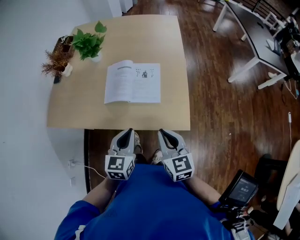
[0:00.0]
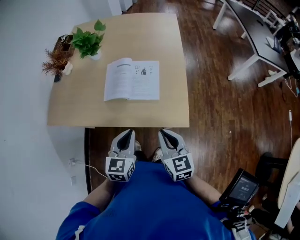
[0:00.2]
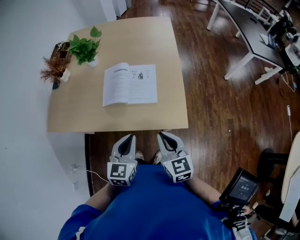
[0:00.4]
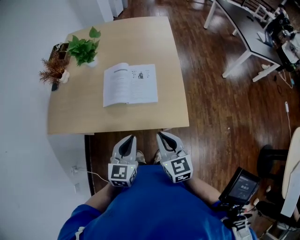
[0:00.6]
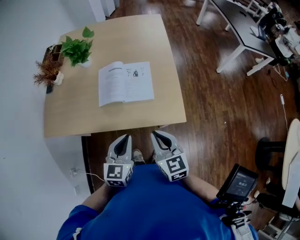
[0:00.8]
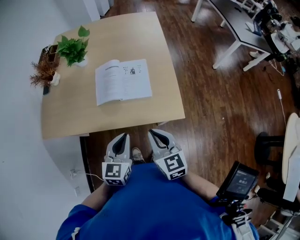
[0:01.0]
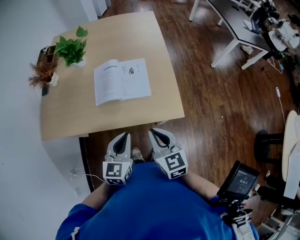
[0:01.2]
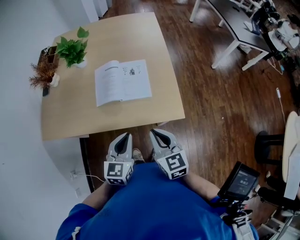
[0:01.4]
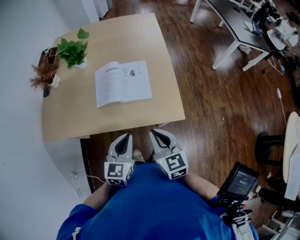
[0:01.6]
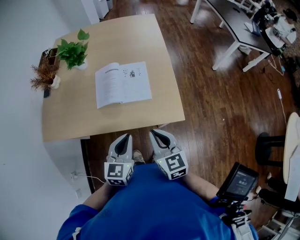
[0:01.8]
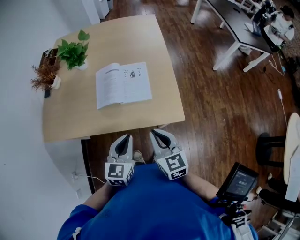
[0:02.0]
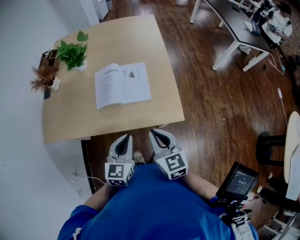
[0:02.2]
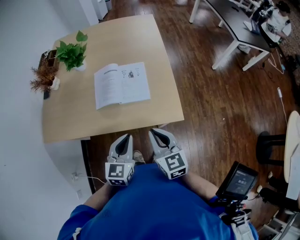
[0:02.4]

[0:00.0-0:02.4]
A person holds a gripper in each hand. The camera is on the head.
0:00.0 to 0:02.4: The grippers make only small movements.

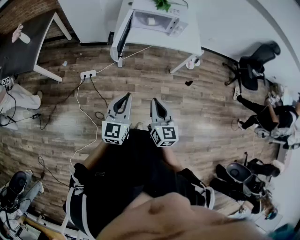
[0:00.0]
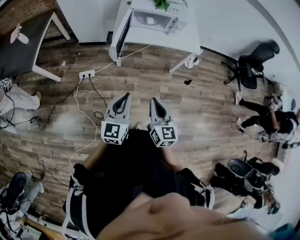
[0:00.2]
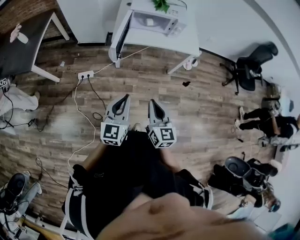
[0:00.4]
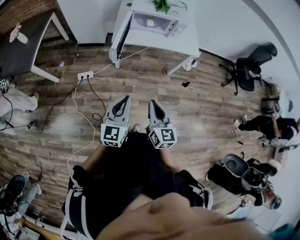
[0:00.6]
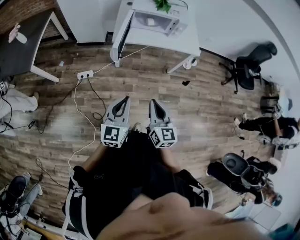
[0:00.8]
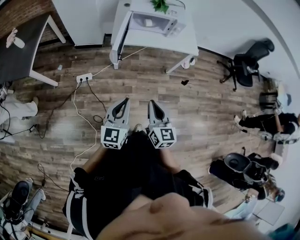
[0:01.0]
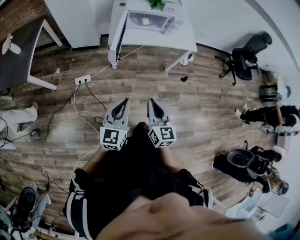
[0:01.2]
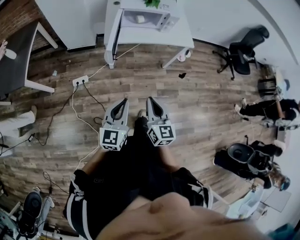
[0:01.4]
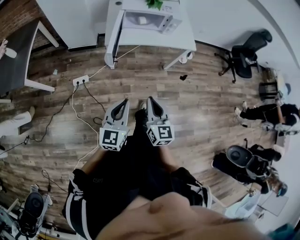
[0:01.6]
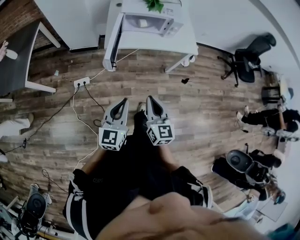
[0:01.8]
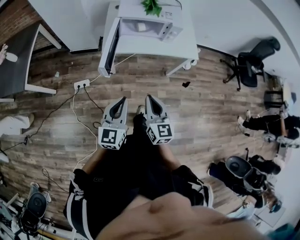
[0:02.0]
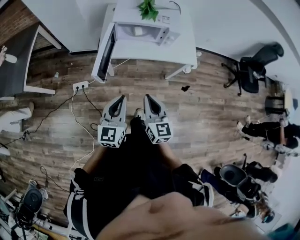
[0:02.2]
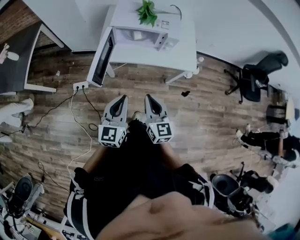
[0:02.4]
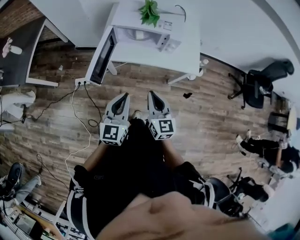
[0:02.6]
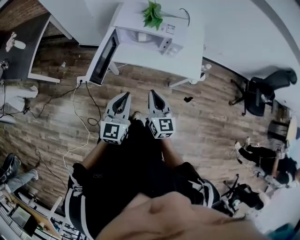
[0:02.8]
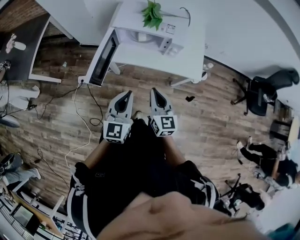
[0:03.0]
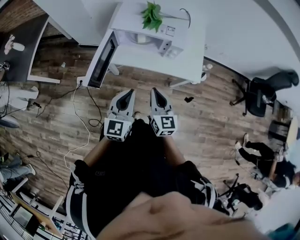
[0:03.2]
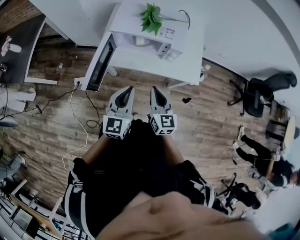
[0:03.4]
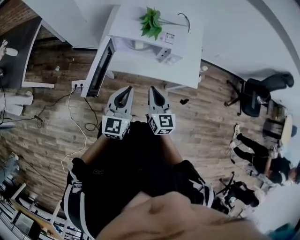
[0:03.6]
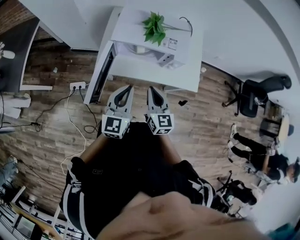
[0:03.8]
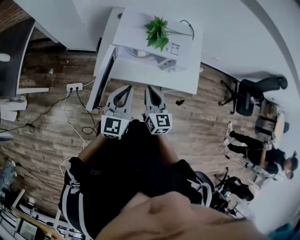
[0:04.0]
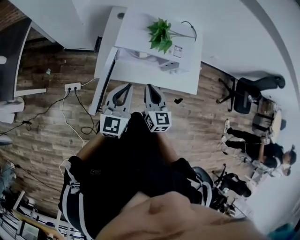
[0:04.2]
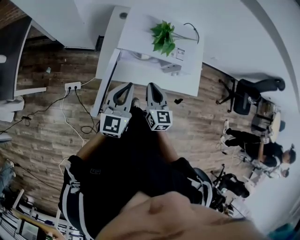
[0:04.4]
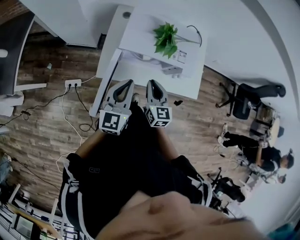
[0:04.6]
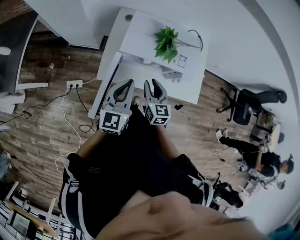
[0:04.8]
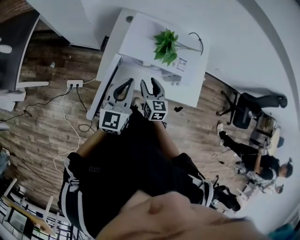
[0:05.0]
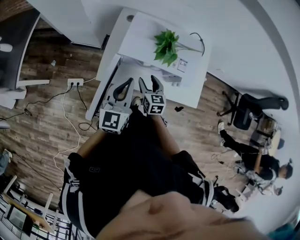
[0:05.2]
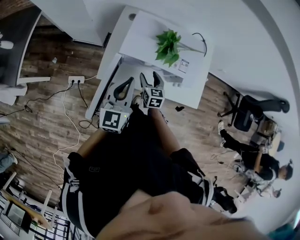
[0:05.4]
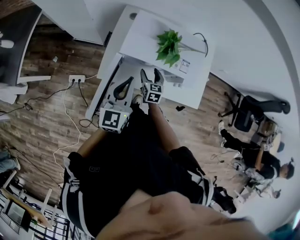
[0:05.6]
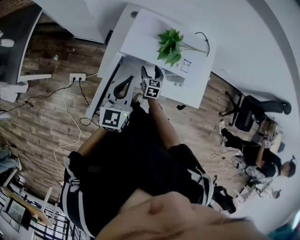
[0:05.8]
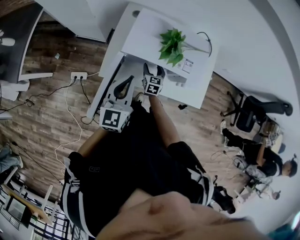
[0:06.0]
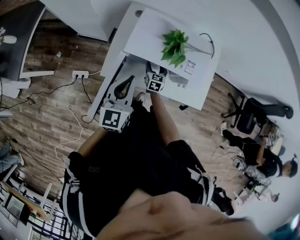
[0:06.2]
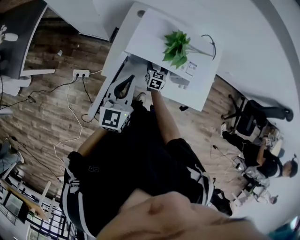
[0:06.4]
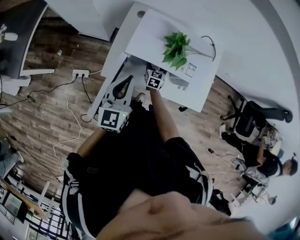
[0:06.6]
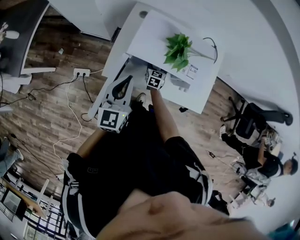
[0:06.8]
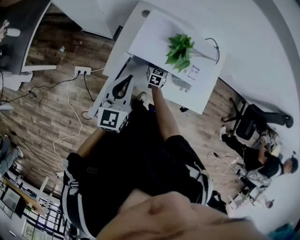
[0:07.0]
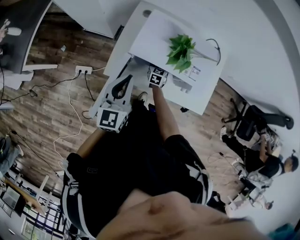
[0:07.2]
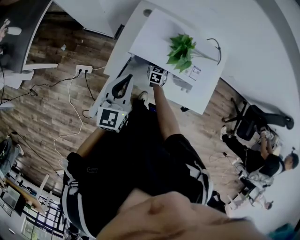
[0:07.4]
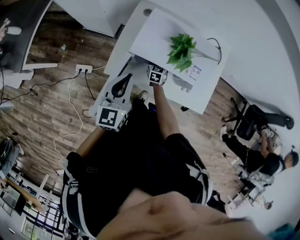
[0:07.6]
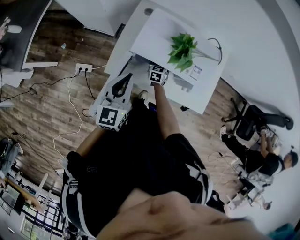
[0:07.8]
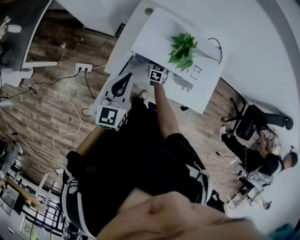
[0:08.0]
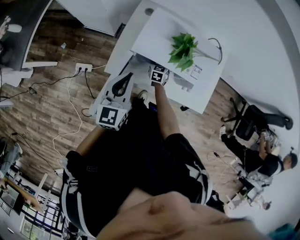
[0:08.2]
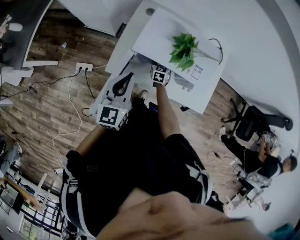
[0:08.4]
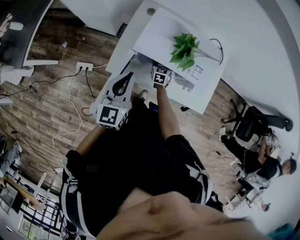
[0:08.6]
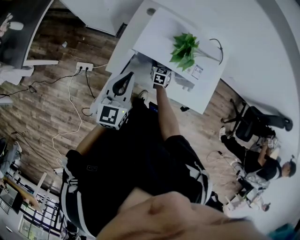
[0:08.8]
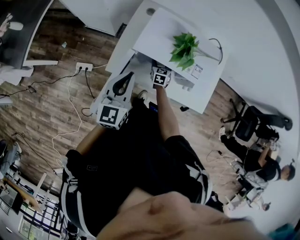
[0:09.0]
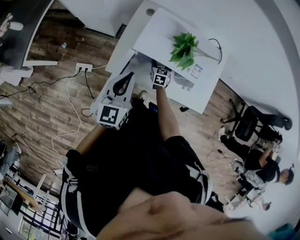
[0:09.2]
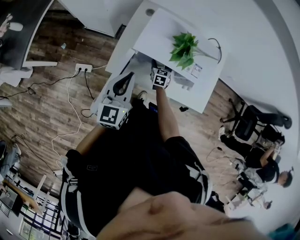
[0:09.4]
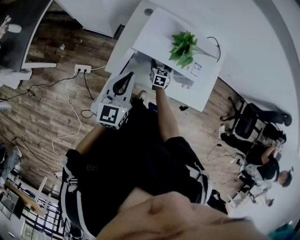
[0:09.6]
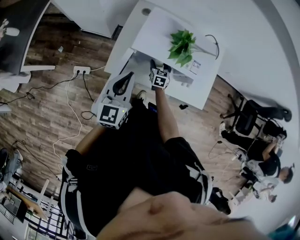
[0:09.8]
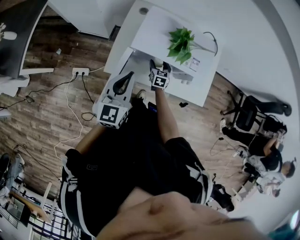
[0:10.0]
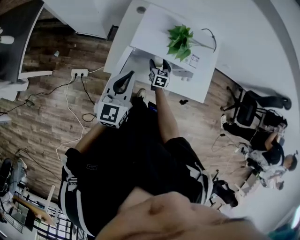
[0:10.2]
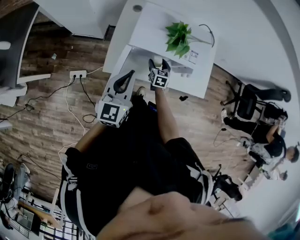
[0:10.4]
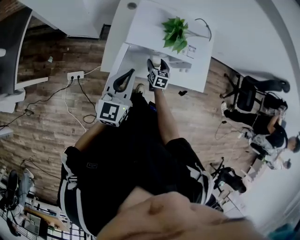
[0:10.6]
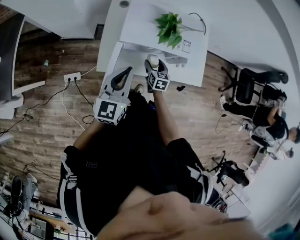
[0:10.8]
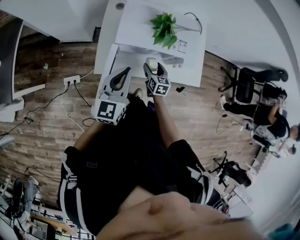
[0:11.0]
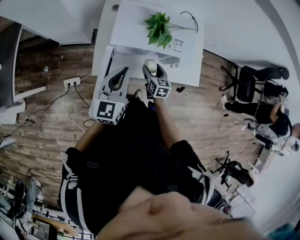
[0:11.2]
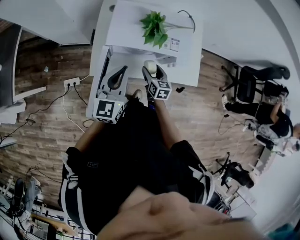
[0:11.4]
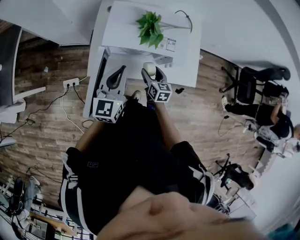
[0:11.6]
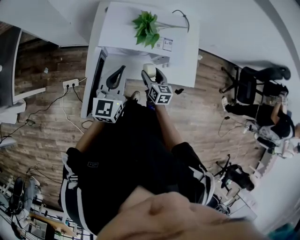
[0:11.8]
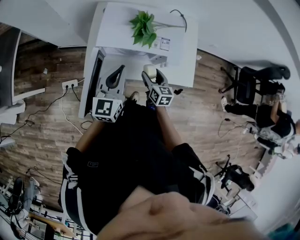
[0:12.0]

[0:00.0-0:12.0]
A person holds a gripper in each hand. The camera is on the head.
0:00.0 to 0:01.6: The right gripper ends up roughly 5 cm from where it was.
0:01.6 to 0:03.0: Both grippers move forward and to the right, about 30 cm.
0:03.0 to 0:04.4: Both grippers move forward and to the left, roughly 20 cm.
0:04.4 to 0:06.0: The right gripper shifts approximately 30 cm downward and forward, and opens its fingers; the left gripper heads forward, covering roughly 5 cm.
0:06.0 to 0:07.6: The right gripper shifts some 10 cm forward and downward.
0:07.6 to 0:09.0: The grippers make only small movements.
0:09.0 to 0:10.4: The right gripper shifts some 5 cm backward.
0:10.4 to 0:12.0: The right gripper shifts some 15 cm upward, to the right and backward, while the left gripper goes approximately 10 cm to the right.

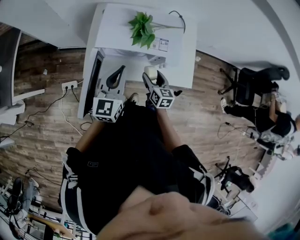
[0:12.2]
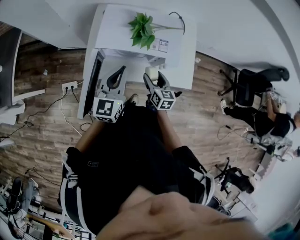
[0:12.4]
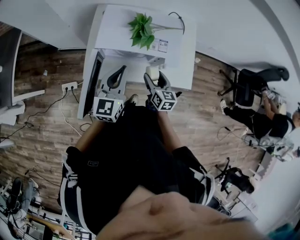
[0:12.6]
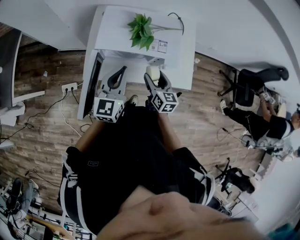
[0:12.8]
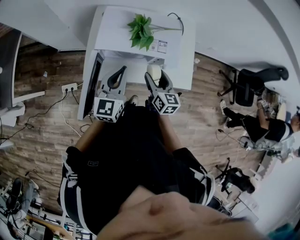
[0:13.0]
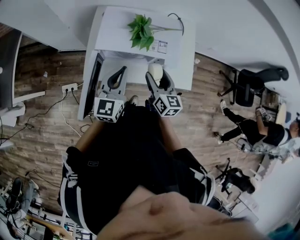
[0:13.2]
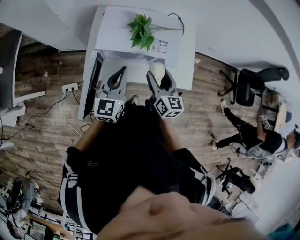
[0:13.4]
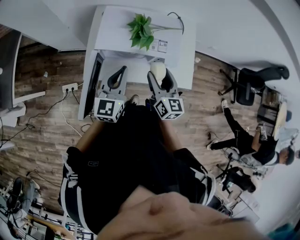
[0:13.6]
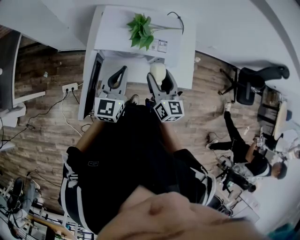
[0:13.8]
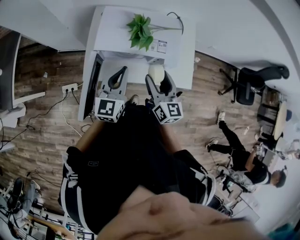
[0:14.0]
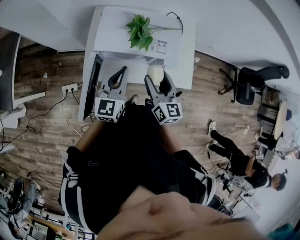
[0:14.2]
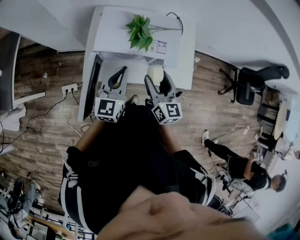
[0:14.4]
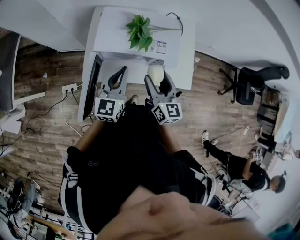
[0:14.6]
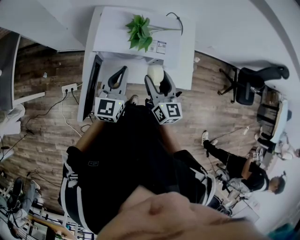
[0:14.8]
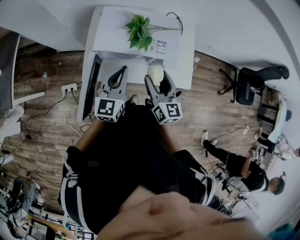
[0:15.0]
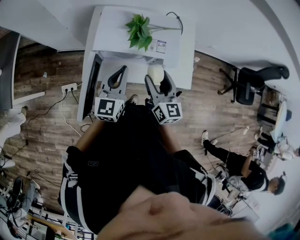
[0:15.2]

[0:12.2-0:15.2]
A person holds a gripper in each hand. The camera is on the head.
0:12.2 to 0:13.8: The right gripper is displaced upward by about 15 cm.
0:13.8 to 0:15.2: Both grippers stay put.

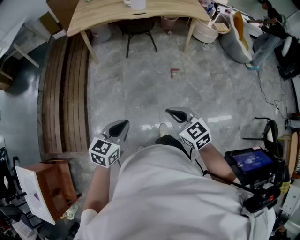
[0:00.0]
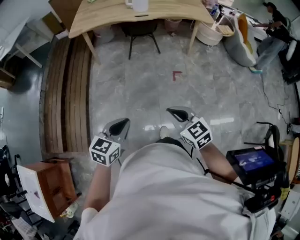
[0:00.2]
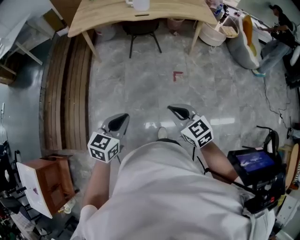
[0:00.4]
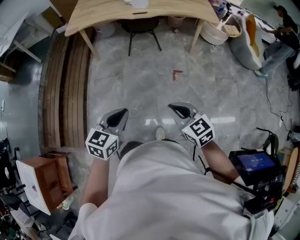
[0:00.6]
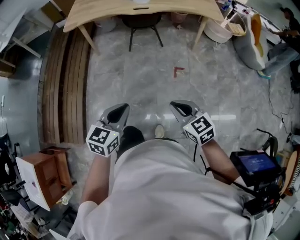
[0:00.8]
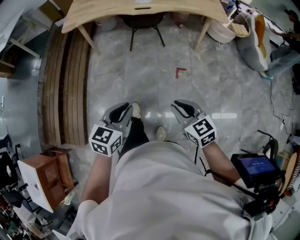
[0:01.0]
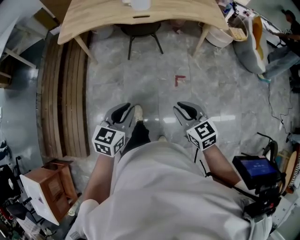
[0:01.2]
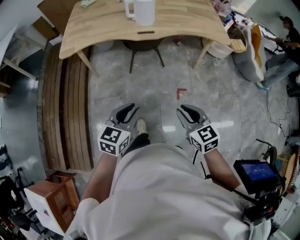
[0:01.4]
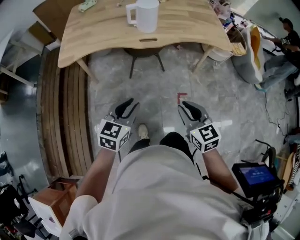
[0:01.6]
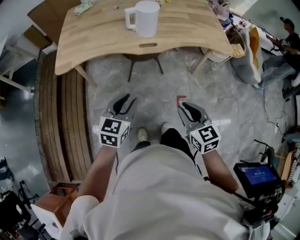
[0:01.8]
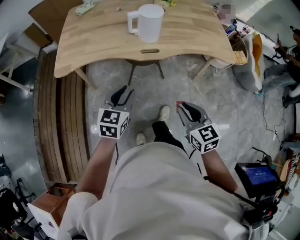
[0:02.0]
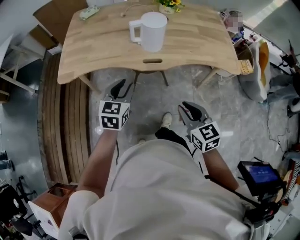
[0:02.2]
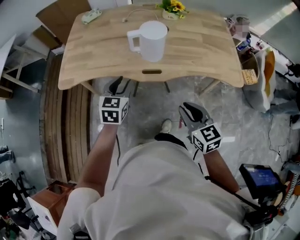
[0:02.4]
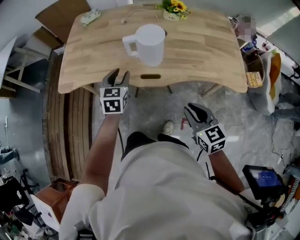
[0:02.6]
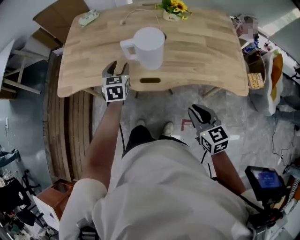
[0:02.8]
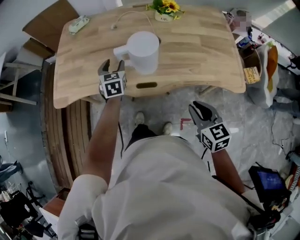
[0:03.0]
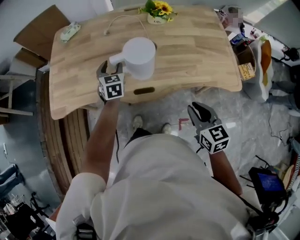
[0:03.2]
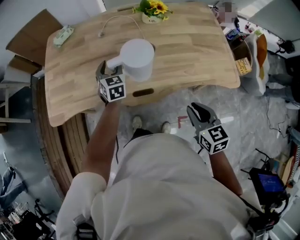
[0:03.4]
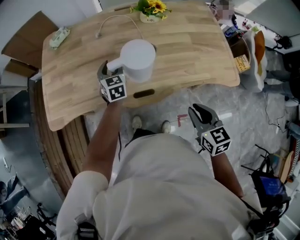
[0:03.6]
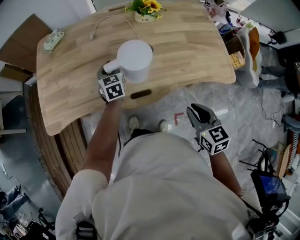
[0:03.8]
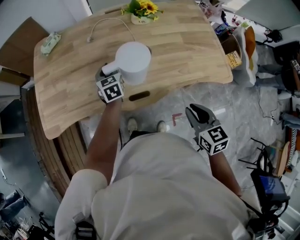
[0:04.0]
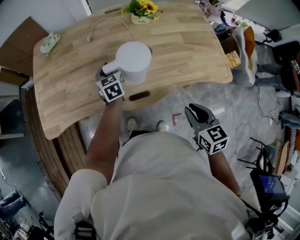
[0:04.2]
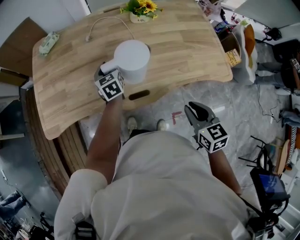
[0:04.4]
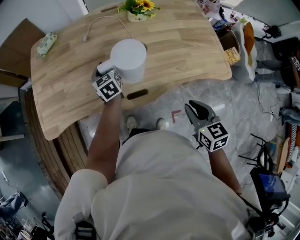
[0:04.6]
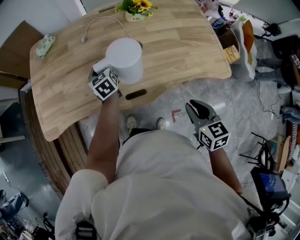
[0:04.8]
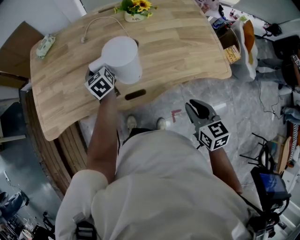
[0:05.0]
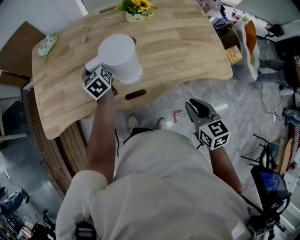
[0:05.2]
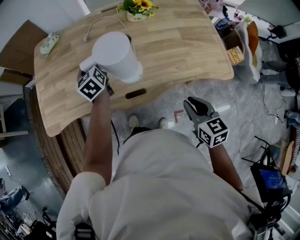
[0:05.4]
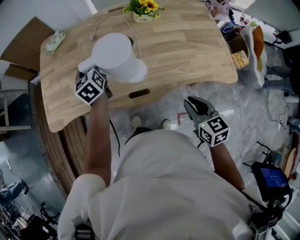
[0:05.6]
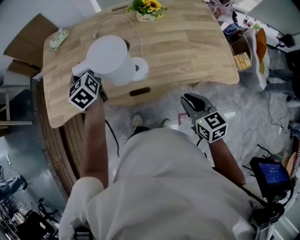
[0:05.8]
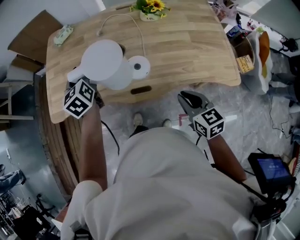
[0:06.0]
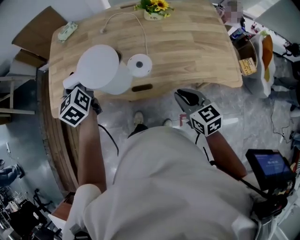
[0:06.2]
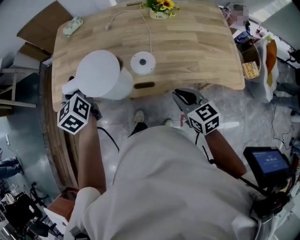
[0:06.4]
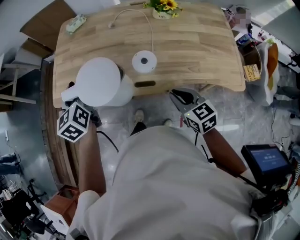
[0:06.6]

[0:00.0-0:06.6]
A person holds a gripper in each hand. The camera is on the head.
0:00.0 to 0:01.6: Both grippers are carried forward, roughly 50 cm. The left gripper opens up.
0:01.6 to 0:03.2: The right gripper is displaced forward and to the right by roughly 40 cm. Meanwhile the left gripper is displaced forward by roughly 60 cm, turns by about 30 degrees, and opens up.
0:03.2 to 0:05.0: The left gripper goes approximately 5 cm forward, swivels approximately 30 degrees, and closes.
0:05.0 to 0:06.6: The right gripper heads to the left, covering approximately 5 cm, and changes its angle by about 30 degrees. Meanwhile the left gripper goes about 30 cm upward, backward and to the left.
